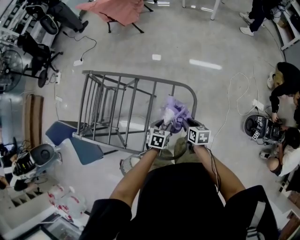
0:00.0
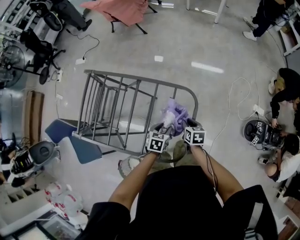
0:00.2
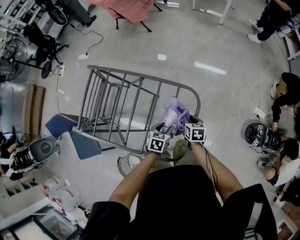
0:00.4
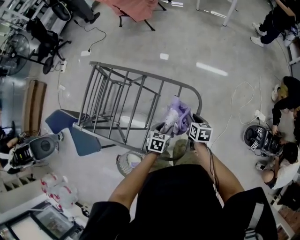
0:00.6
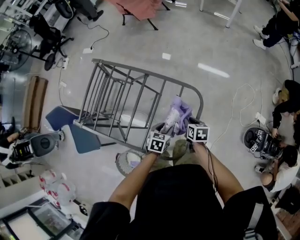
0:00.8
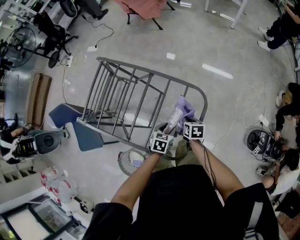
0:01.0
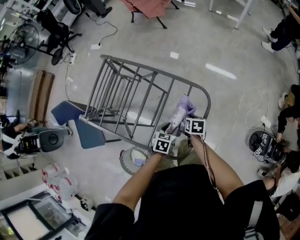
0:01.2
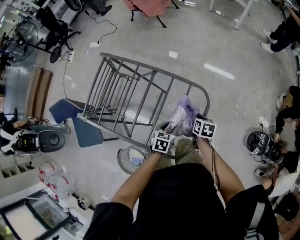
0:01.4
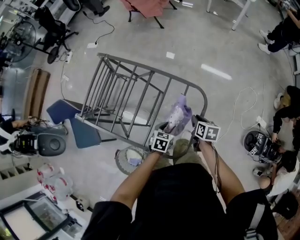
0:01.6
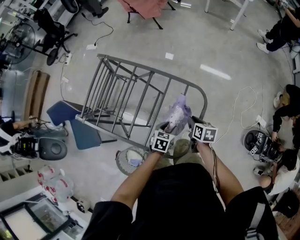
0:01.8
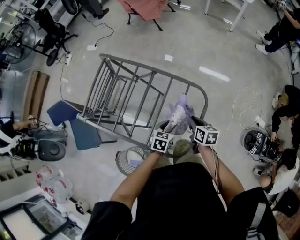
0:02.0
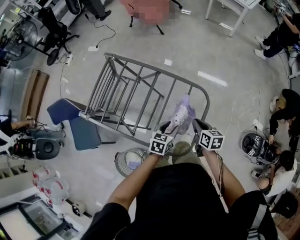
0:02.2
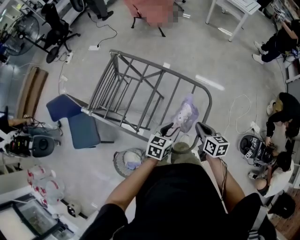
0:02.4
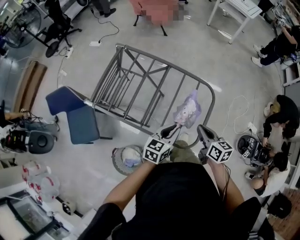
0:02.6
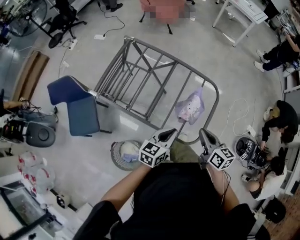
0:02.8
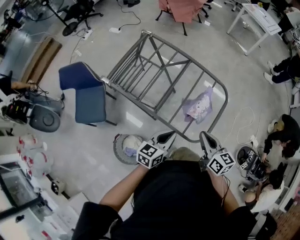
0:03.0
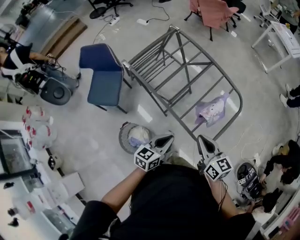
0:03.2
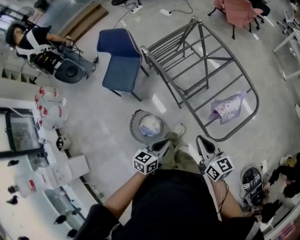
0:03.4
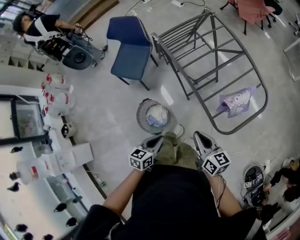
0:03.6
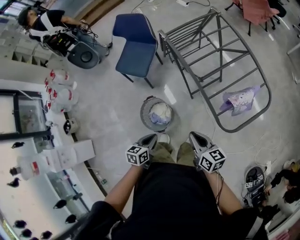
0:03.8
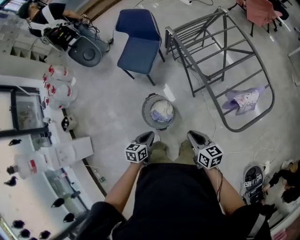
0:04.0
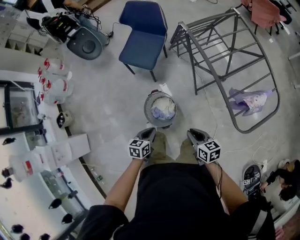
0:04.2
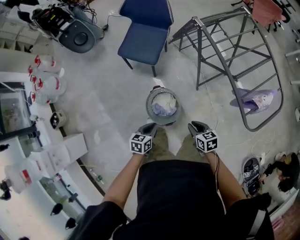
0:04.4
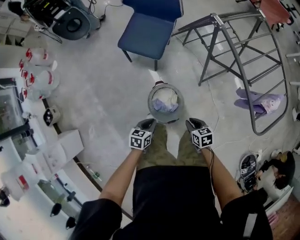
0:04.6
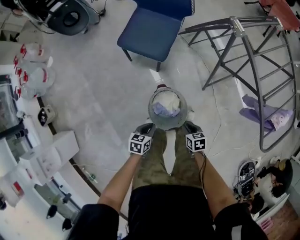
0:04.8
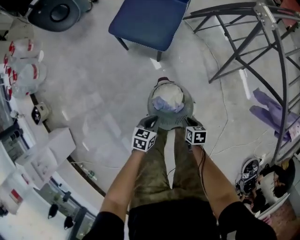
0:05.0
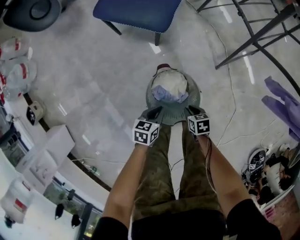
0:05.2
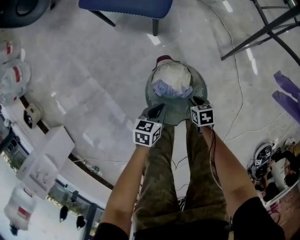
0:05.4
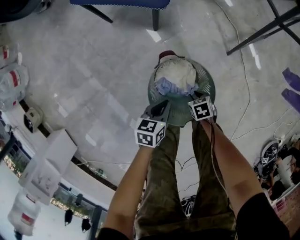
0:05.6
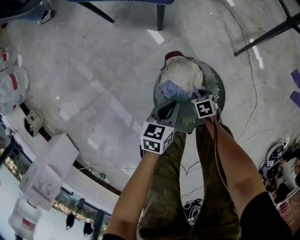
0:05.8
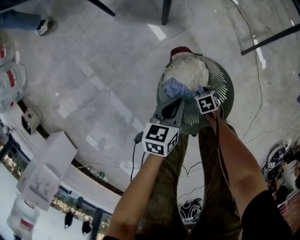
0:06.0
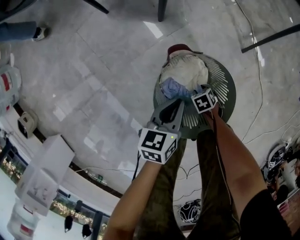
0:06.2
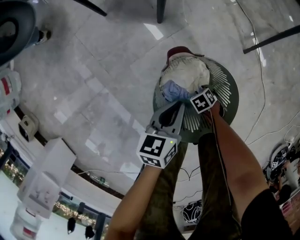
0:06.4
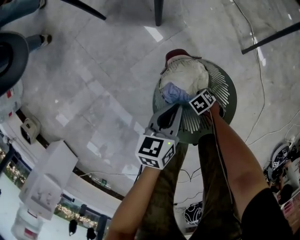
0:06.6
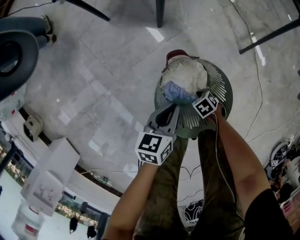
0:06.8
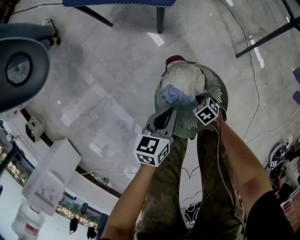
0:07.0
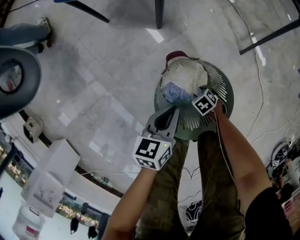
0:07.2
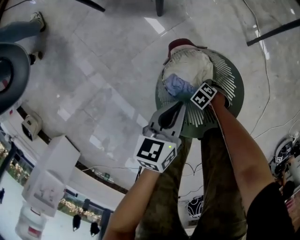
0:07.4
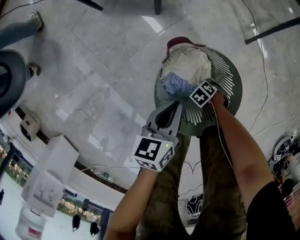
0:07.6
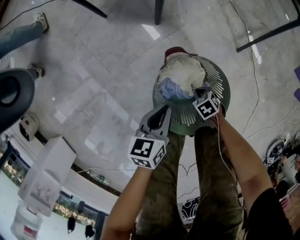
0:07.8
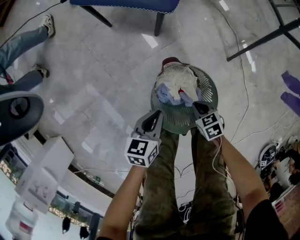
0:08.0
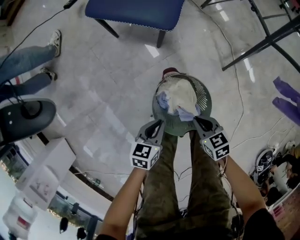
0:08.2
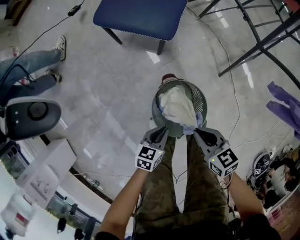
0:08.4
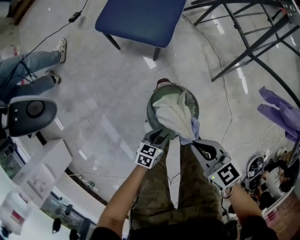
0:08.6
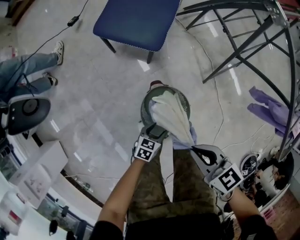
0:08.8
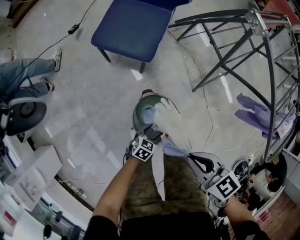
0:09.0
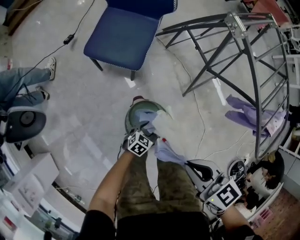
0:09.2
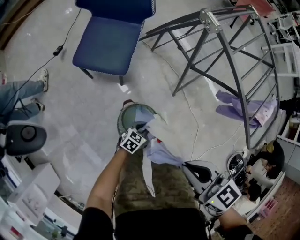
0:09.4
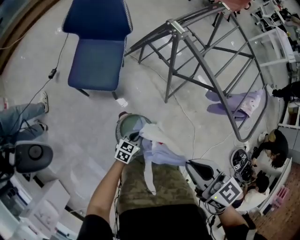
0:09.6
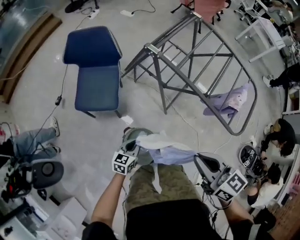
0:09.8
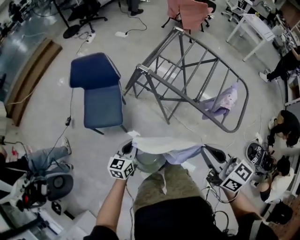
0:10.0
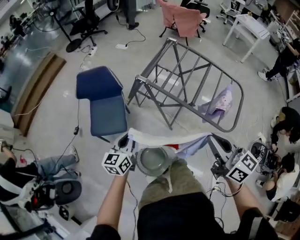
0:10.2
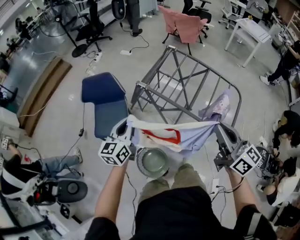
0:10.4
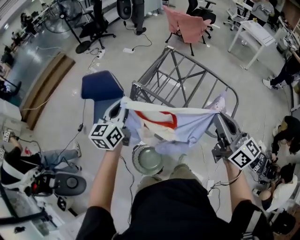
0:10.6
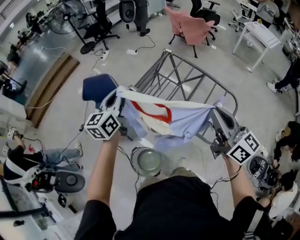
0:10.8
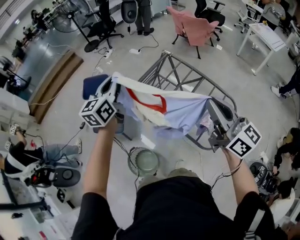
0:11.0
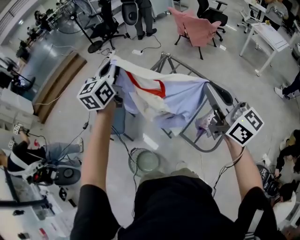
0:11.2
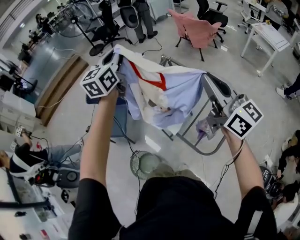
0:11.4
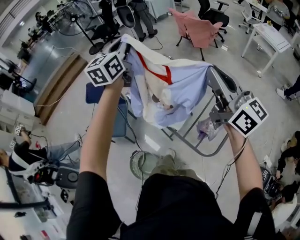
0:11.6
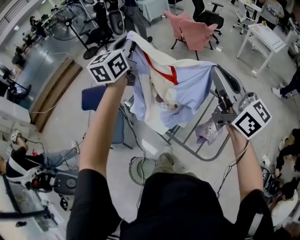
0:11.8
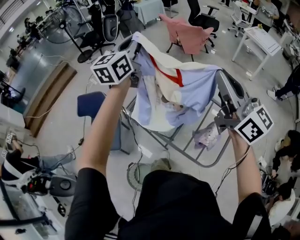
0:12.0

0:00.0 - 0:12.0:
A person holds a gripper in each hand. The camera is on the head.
0:01.6 - 0:03.0: The grippers both shift upward, backward and to the left by approximately 25 cm. The right gripper tips its fingers upward by approximately 30 degrees. The left gripper tilts its fingers about 30 degrees upward, and closes its fingers.
0:03.0 - 0:04.4: The two grippers travel together, roughly 40 cm. The right gripper rotates some 50 degrees; the left gripper changes its angle by some 50 degrees.
0:04.4 - 0:06.0: The left gripper goes some 40 cm downward, while the right gripper is displaced downward by some 70 cm, and tips its fingers downward by some 30 degrees.
0:06.0 - 0:07.6: The right gripper goes up and down, some 10 cm each way, reversing 2 times, turns by roughly 30 degrees, and closes up.
0:07.6 - 0:09.0: The left gripper heads upward, covering some 15 cm, changes its angle by approximately 30 degrees, and opens its fingers. Meanwhile the right gripper moves upward, roughly 70 cm, and angles its fingers upward, by roughly 40 degrees.
0:09.0 - 0:10.4: The left gripper goes some 60 cm upward, points its fingers approximately 40 degrees further upward, and closes its fingers; the right gripper is displaced upward and to the right by some 50 cm, and tips its fingers upward by about 40 degrees.
0:10.4 - 0:12.0: Both grippers move forward, upward and to the right, approximately 40 cm.

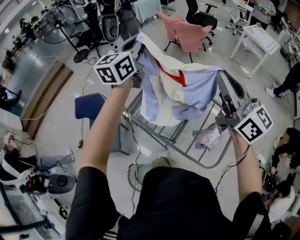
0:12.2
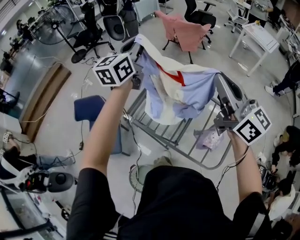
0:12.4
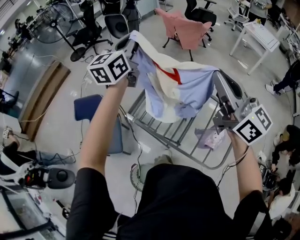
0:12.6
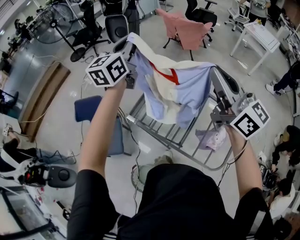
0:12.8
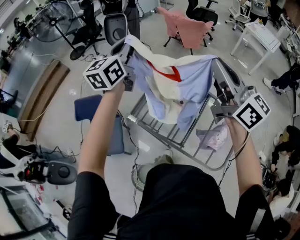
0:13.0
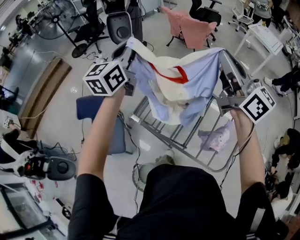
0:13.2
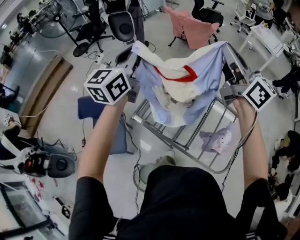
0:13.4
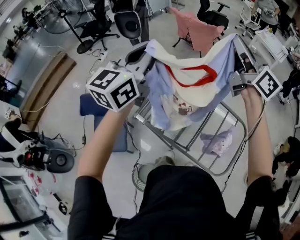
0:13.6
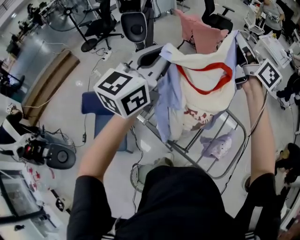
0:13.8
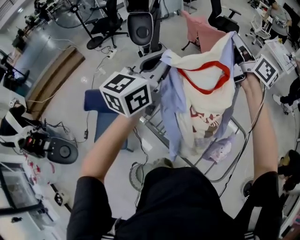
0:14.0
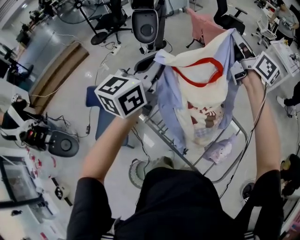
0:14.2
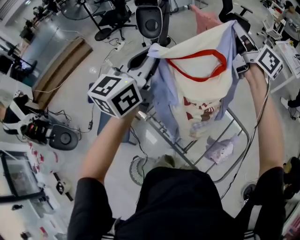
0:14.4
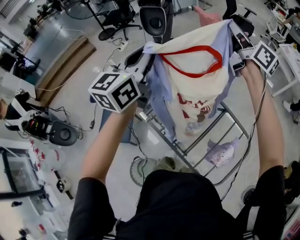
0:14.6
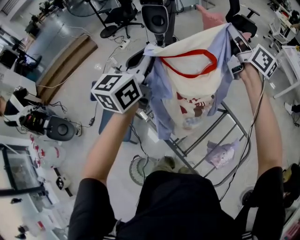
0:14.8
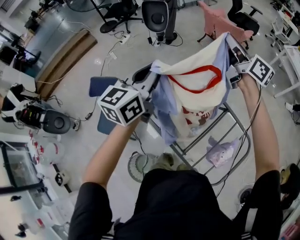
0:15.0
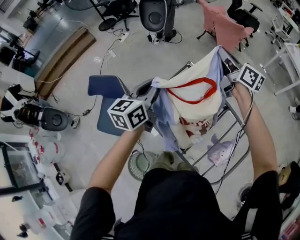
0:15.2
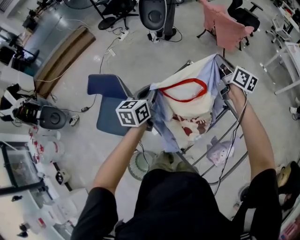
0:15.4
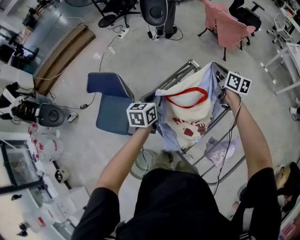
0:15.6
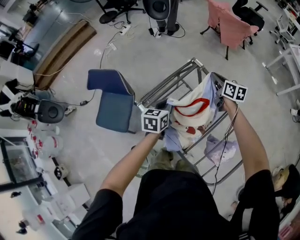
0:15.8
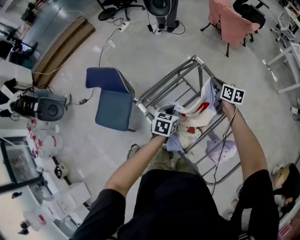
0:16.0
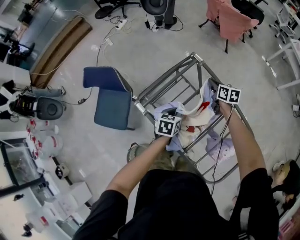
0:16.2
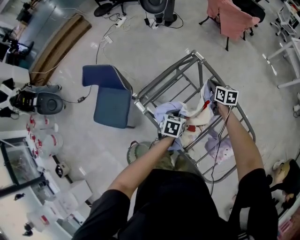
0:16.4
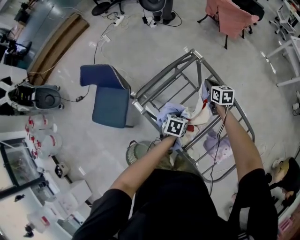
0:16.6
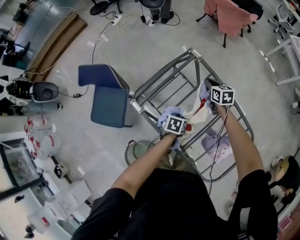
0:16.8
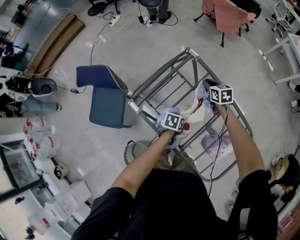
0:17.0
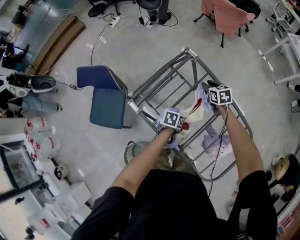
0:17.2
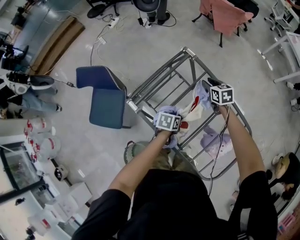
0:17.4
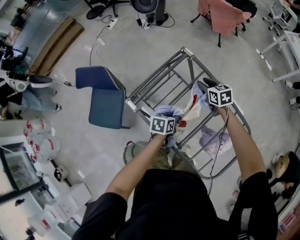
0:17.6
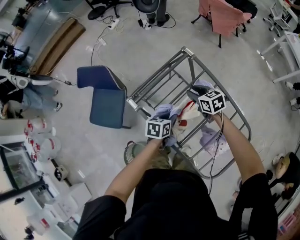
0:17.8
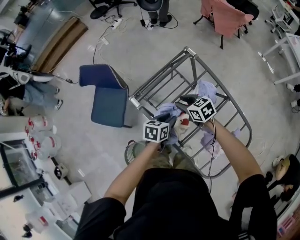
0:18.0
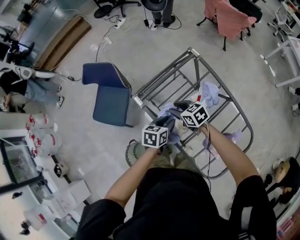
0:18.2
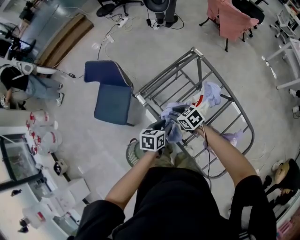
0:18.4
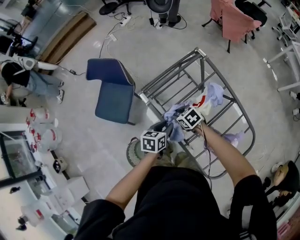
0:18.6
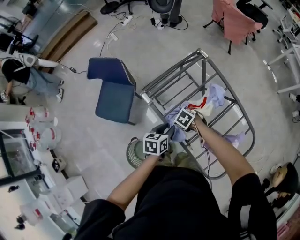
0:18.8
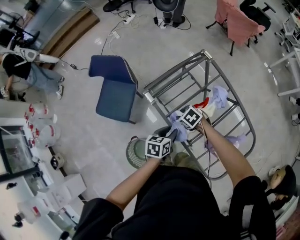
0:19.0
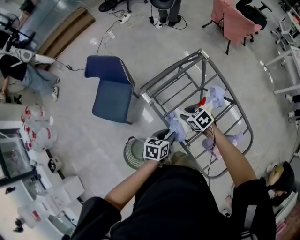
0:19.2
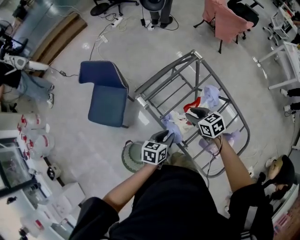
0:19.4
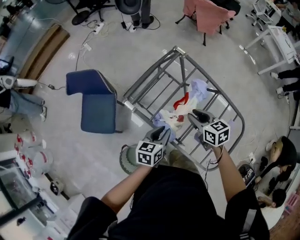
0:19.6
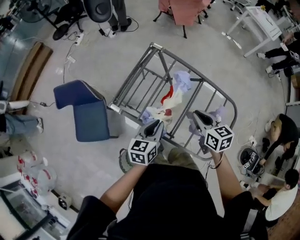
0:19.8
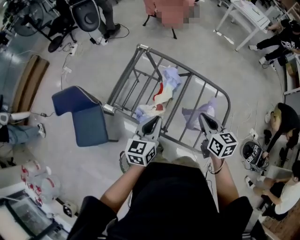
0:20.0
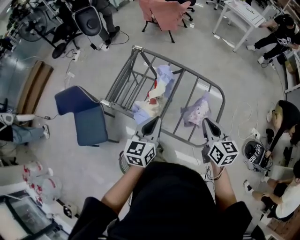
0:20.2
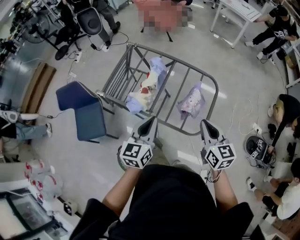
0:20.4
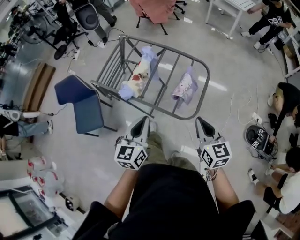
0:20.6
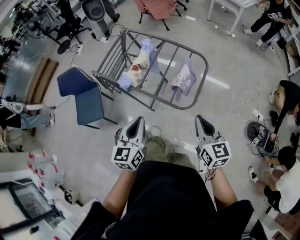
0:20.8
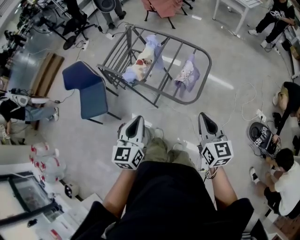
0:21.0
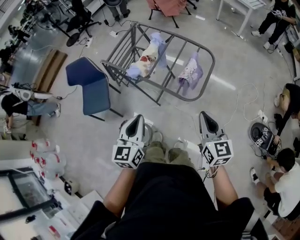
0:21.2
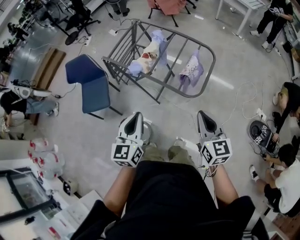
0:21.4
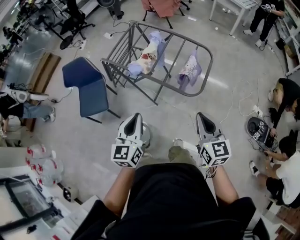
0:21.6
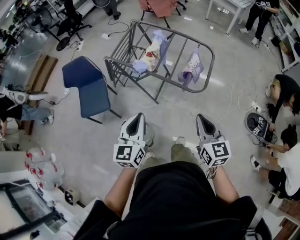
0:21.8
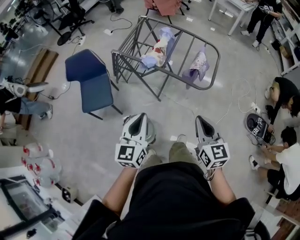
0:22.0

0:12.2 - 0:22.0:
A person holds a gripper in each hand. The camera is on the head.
0:12.2 - 0:13.6: The right gripper heads forward, covering about 15 cm; the left gripper shifts about 5 cm backward.
0:13.6 - 0:15.0: The left gripper travels downward and forward by some 10 cm. The right gripper heads forward and downward, covering about 20 cm, and rotates about 20 degrees.
0:15.0 - 0:16.4: The grippers both shift downward by about 40 cm. The left gripper tips its fingers downward by some 50 degrees. The right gripper tilts its fingers some 50 degrees downward.
0:16.4 - 0:17.8: The right gripper travels backward and to the left by some 10 cm, turns by some 20 degrees, and opens up, while the left gripper goes downward and returns, some 5 cm each way.
0:17.8 - 0:19.2: The right gripper shifts by approximately 15 cm, and changes its angle by roughly 30 degrees. The left gripper moves some 15 cm.
0:19.2 - 0:20.6: The left gripper moves some 35 cm, turns by approximately 40 degrees, and closes up, while the right gripper ends up roughly 60 cm from where it was, tilts its fingers roughly 40 degrees upward, and closes.
0:20.6 - 0:22.0: The two grippers go roughly 25 cm backward and to the left.

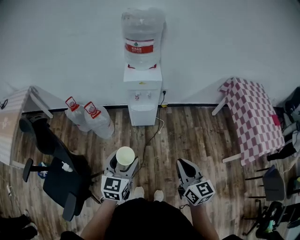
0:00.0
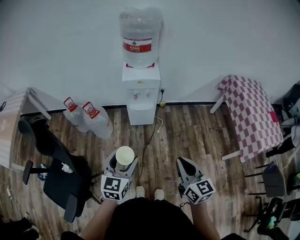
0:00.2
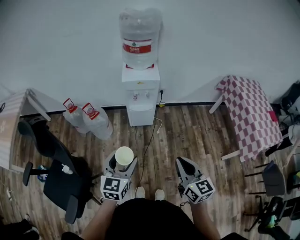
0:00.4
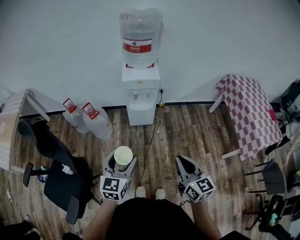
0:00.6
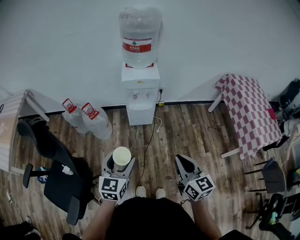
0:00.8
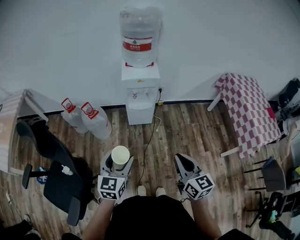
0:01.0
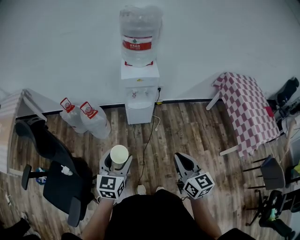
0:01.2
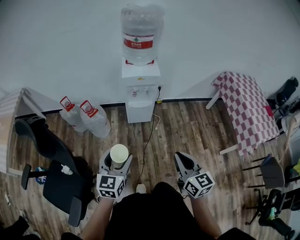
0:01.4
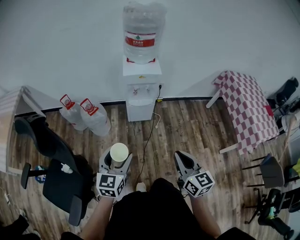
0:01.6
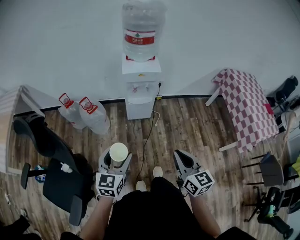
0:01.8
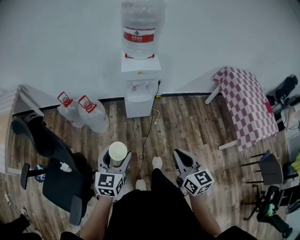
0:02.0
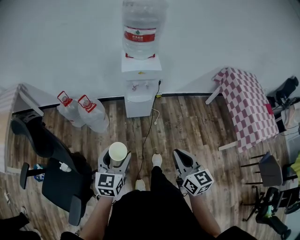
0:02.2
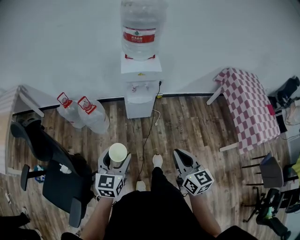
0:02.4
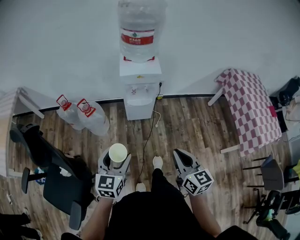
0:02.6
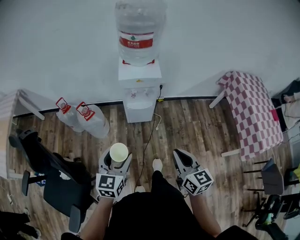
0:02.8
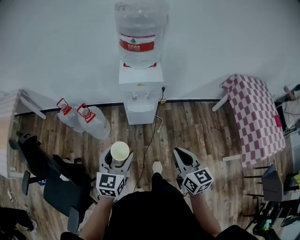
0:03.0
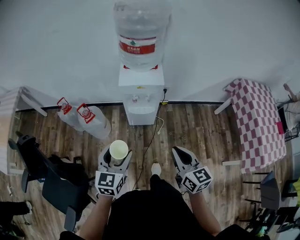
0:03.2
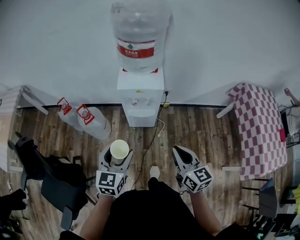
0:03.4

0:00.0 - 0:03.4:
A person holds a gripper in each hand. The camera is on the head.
0:00.0 - 0:01.6: Both grippers move to the left, some 5 cm.
0:01.6 - 0:03.4: The right gripper heads forward, covering some 25 cm, while the left gripper is displaced forward and to the right by some 20 cm.
